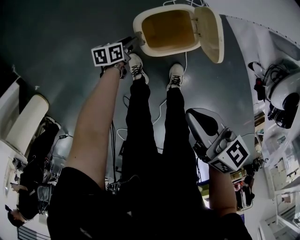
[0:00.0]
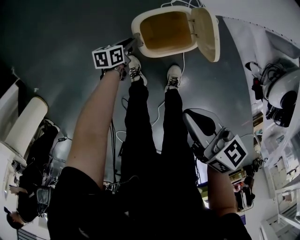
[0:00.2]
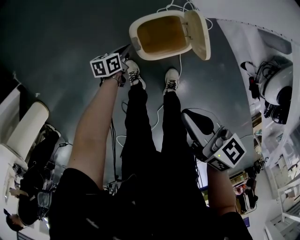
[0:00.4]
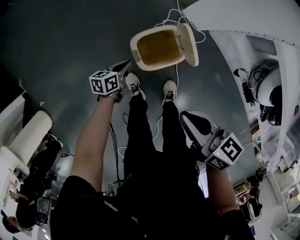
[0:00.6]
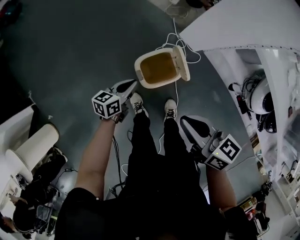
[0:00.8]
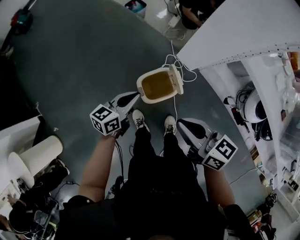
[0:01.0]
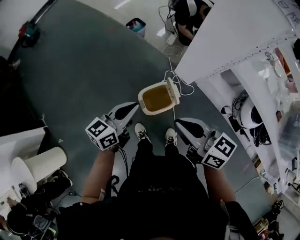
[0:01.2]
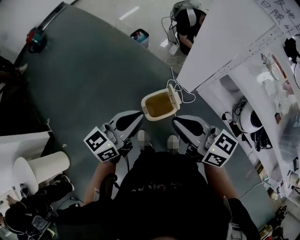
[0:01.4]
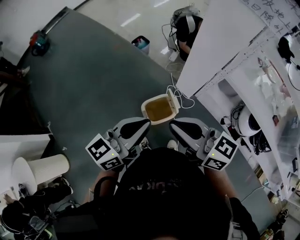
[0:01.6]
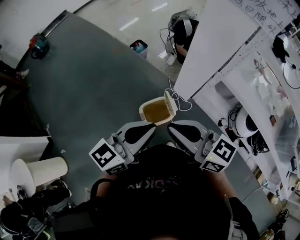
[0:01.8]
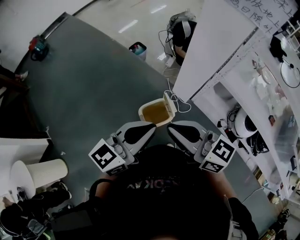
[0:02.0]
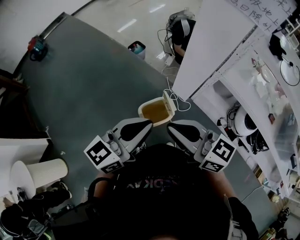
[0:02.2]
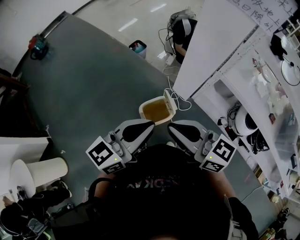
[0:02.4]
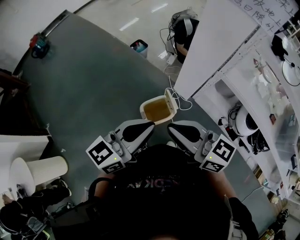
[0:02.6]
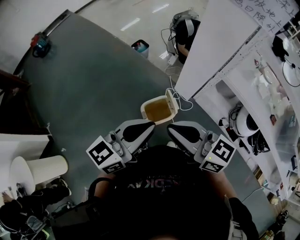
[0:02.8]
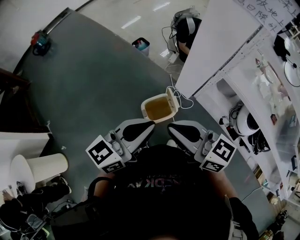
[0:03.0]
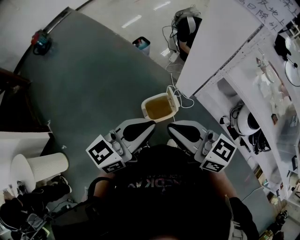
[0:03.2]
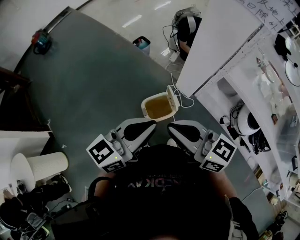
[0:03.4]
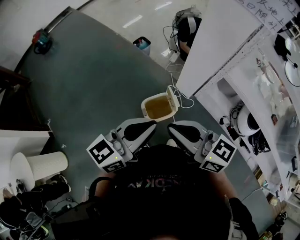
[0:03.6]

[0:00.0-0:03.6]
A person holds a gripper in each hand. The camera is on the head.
0.0 to 1.8 s: The left gripper travels upward by roughly 70 cm, angles its fingers upward, by some 50 degrees, and closes up. The right gripper shifts about 40 cm upward, and turns by roughly 40 degrees.
1.8 to 3.6 s: The grippers move only a little.

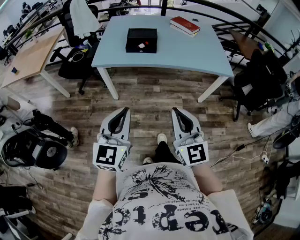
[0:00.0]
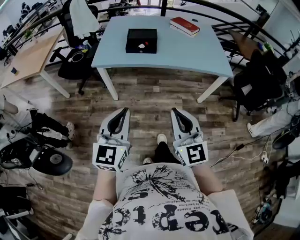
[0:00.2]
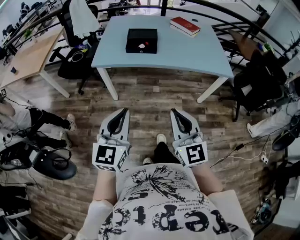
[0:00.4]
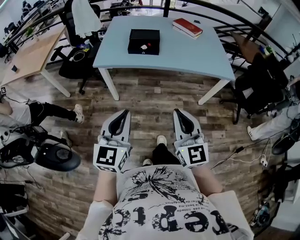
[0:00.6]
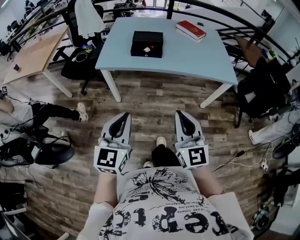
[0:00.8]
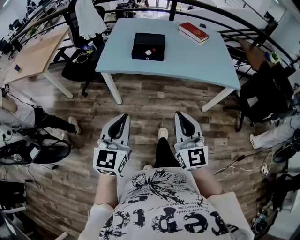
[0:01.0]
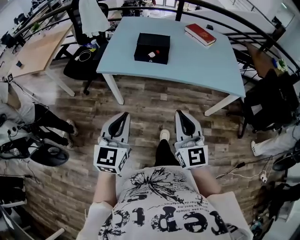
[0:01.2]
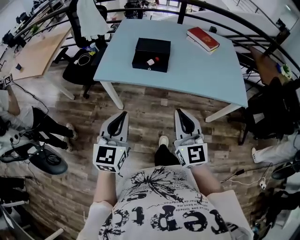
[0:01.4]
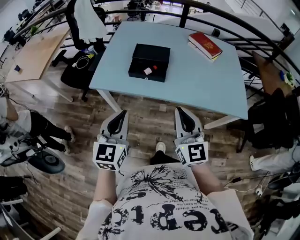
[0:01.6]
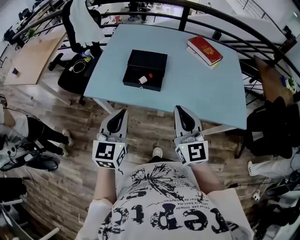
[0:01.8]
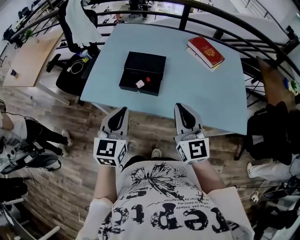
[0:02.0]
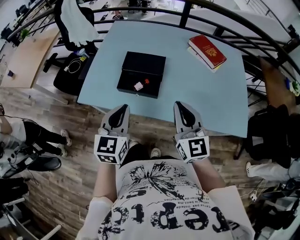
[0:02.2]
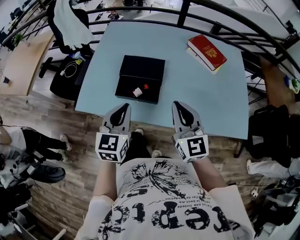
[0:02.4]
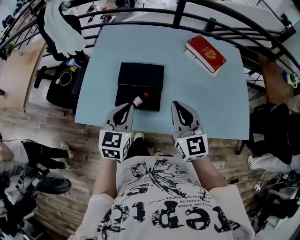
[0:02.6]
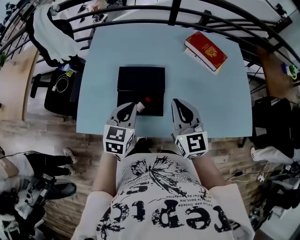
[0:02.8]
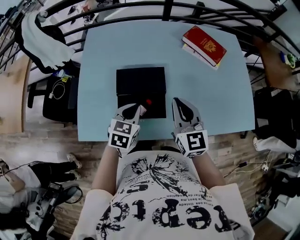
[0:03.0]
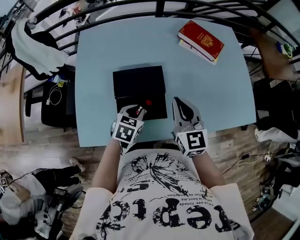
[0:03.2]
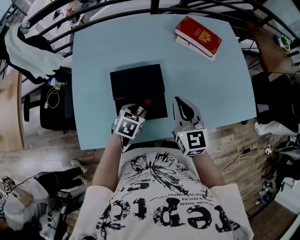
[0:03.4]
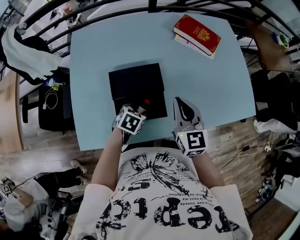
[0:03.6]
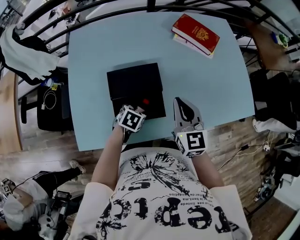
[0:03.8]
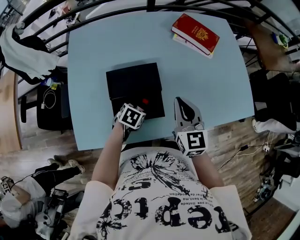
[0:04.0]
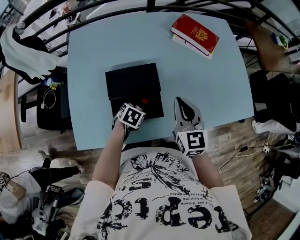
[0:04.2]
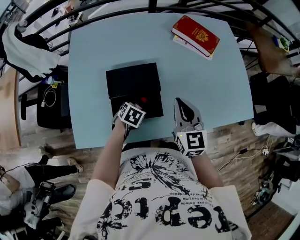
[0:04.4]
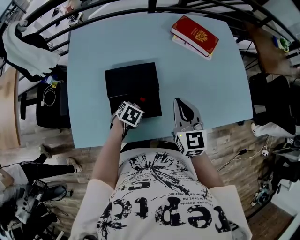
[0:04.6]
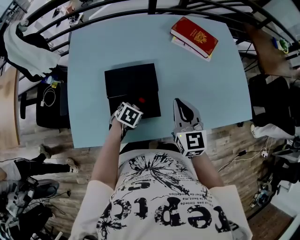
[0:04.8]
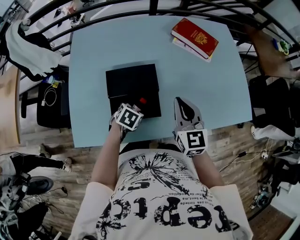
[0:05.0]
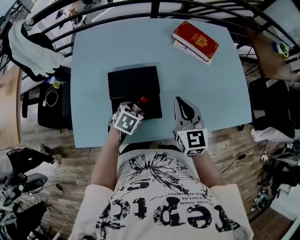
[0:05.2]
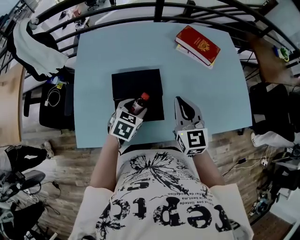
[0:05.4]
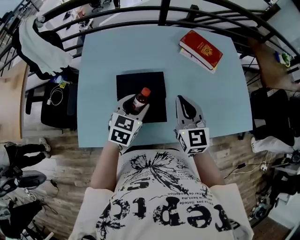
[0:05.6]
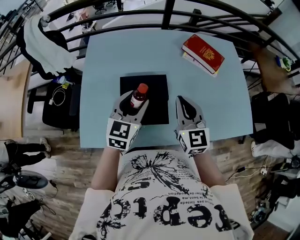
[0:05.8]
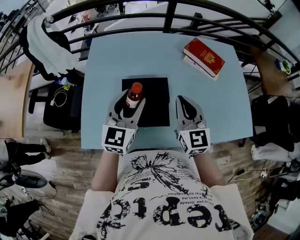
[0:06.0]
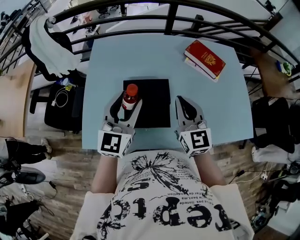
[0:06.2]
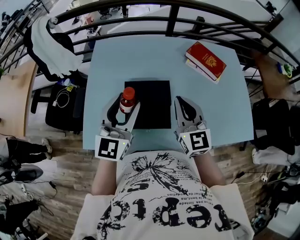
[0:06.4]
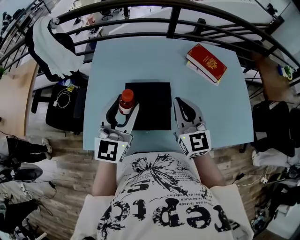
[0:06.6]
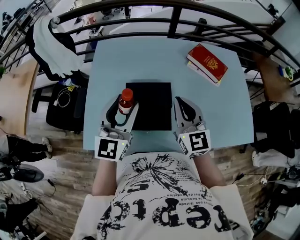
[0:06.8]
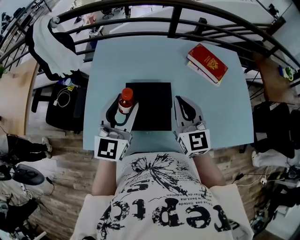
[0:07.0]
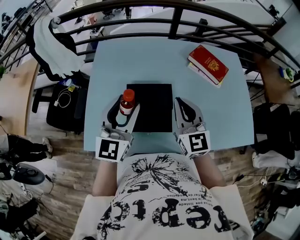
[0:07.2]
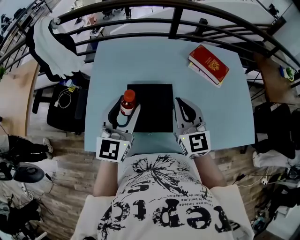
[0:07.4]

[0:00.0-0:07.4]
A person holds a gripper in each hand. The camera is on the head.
0.0 to 1.4 s: The grippers both shift forward by approximately 20 cm.
1.4 to 3.0 s: The pair of grippers is taken forward, some 50 cm. The left gripper turns by about 40 degrees.
3.0 to 4.4 s: The left gripper is displaced downward by roughly 15 cm, rotates some 30 degrees, and opens.
4.4 to 6.0 s: The left gripper goes some 30 cm upward, and tips its fingers upward by roughly 60 degrees. The right gripper shifts some 5 cm upward.
6.0 to 7.4 s: The left gripper changes place by roughly 5 cm.

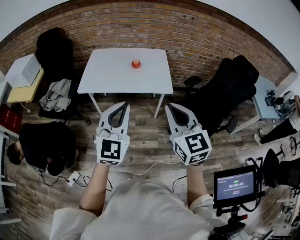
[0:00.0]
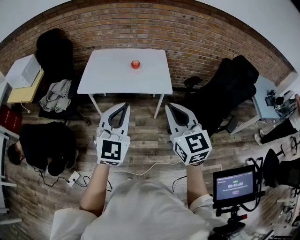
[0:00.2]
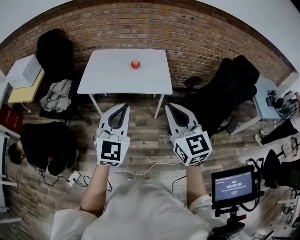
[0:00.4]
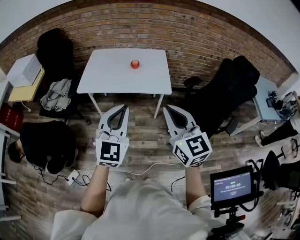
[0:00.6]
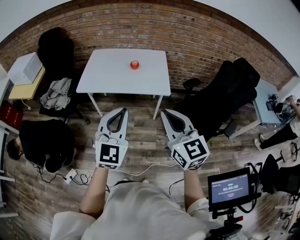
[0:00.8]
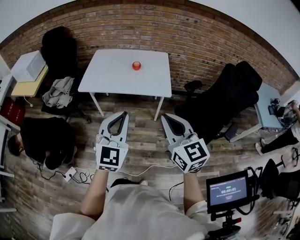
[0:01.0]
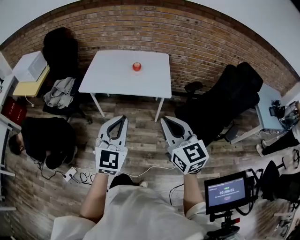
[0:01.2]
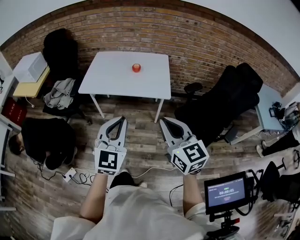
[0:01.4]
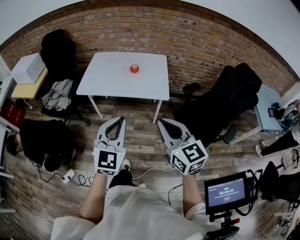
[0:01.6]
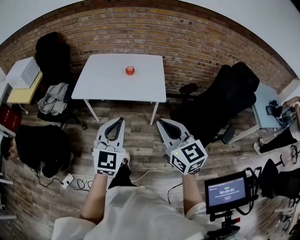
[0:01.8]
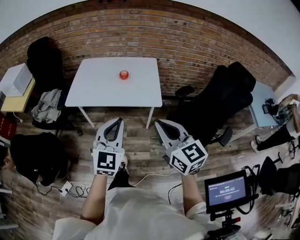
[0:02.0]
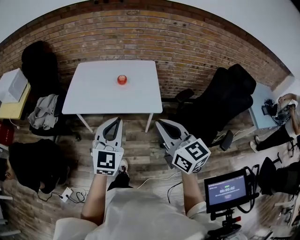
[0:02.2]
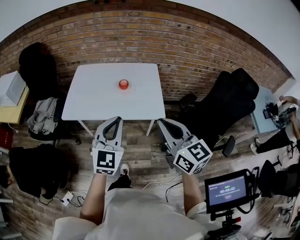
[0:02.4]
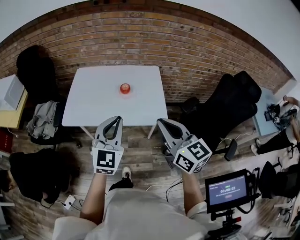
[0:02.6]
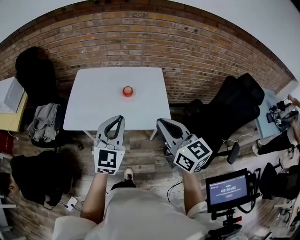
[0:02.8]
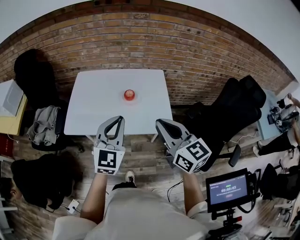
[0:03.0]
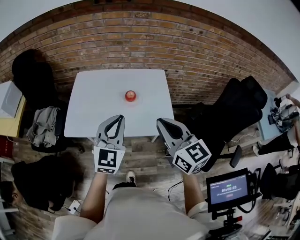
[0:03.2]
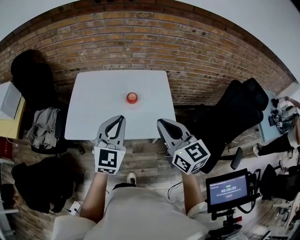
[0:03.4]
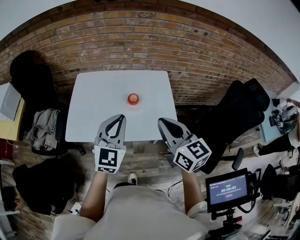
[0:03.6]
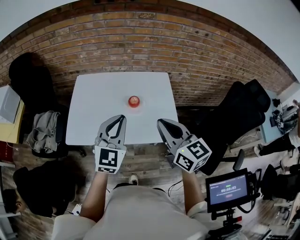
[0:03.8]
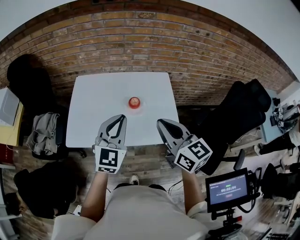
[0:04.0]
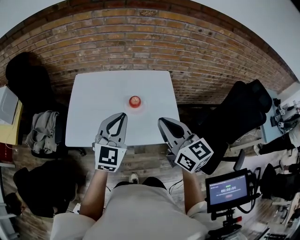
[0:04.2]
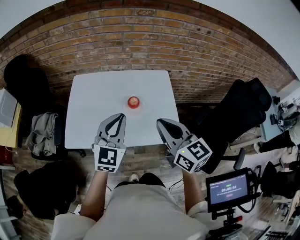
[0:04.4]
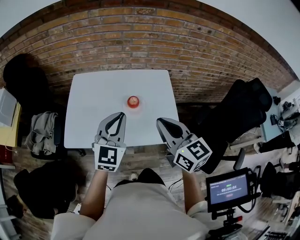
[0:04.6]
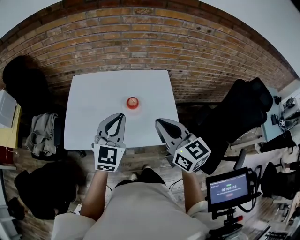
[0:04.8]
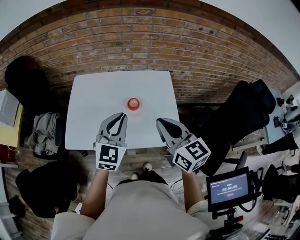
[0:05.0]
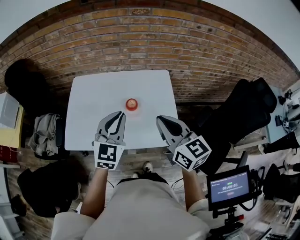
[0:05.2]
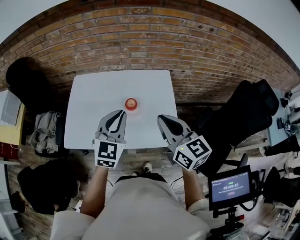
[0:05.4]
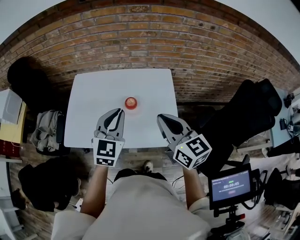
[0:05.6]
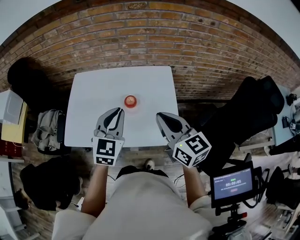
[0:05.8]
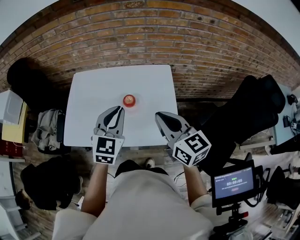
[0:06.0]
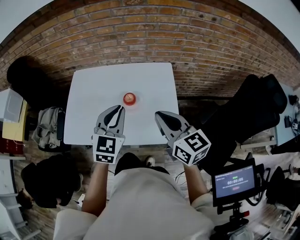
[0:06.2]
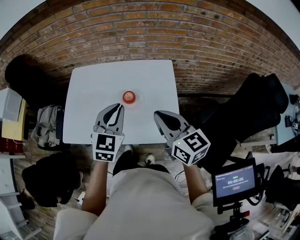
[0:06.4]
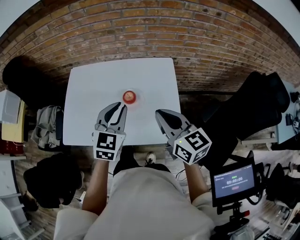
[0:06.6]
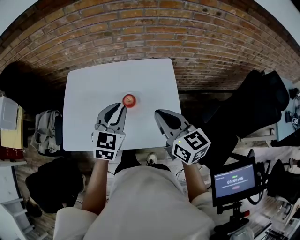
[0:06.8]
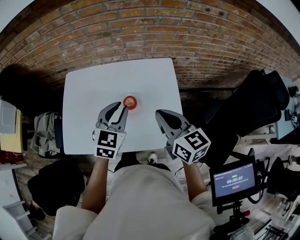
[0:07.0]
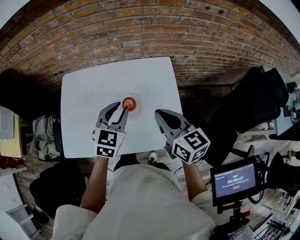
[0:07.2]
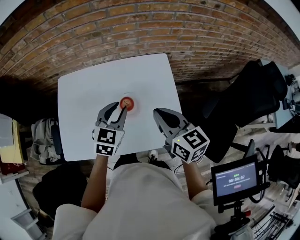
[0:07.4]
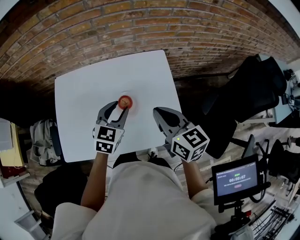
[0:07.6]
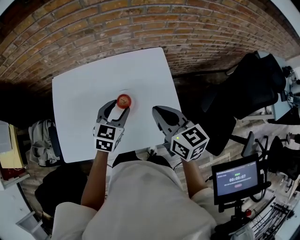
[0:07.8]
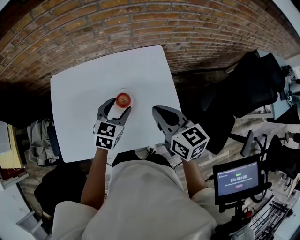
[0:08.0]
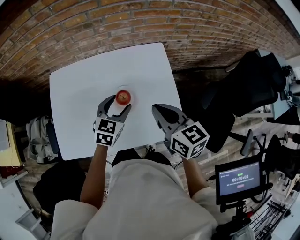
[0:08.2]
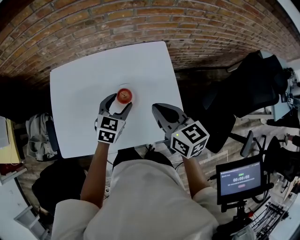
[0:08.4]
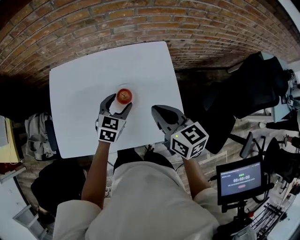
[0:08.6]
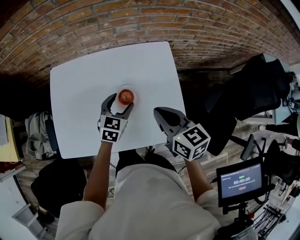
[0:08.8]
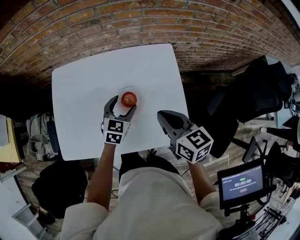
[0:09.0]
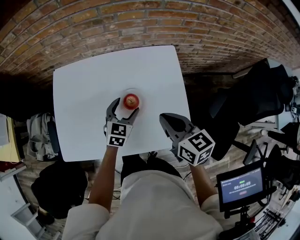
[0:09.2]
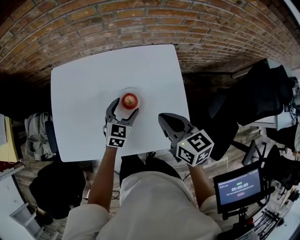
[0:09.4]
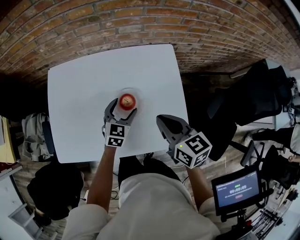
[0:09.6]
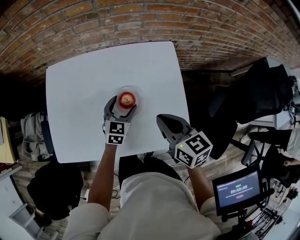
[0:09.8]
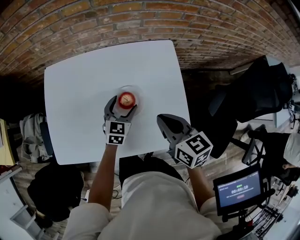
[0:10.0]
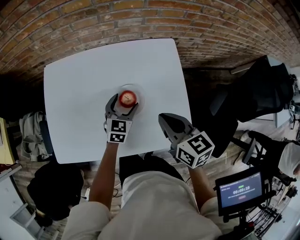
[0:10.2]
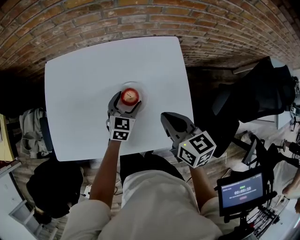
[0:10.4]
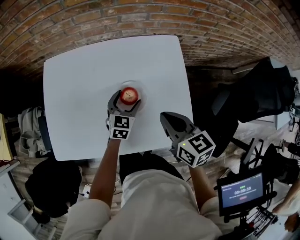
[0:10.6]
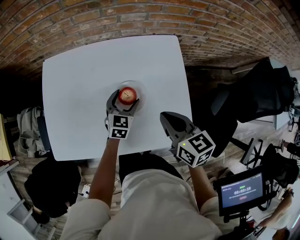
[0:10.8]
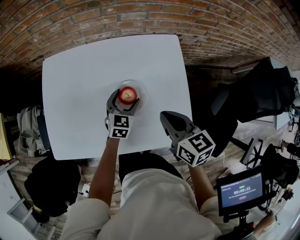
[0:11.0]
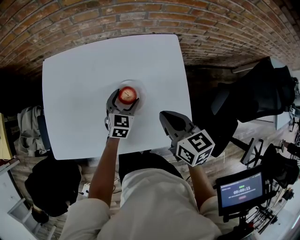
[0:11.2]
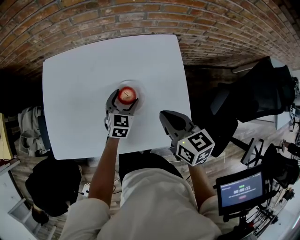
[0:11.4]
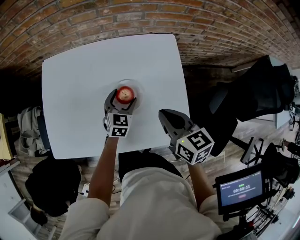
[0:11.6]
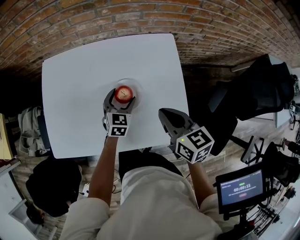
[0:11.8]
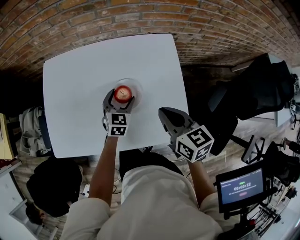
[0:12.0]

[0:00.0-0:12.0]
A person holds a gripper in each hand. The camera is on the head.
0.0 to 1.6 s: The right gripper moves roughly 5 cm; the left gripper changes place by approximately 5 cm.
1.6 to 3.0 s: The grippers both shift forward by about 30 cm.
3.0 to 4.4 s: Both grippers travel together forward, roughly 10 cm.
4.4 to 6.0 s: The grippers both shift to the right and forward by about 10 cm.
6.0 to 7.6 s: The right gripper goes roughly 10 cm forward and downward. Meanwhile the left gripper is displaced downward and forward by about 15 cm, changes its angle by some 20 degrees, and opens its fingers.
7.6 to 9.0 s: The right gripper travels downward by about 5 cm, while the left gripper is displaced downward by approximately 10 cm, and opens its fingers.
9.0 to 10.4 s: The left gripper shifts roughly 5 cm downward.
10.4 to 12.0 s: There are only small adjustments of the grippers.

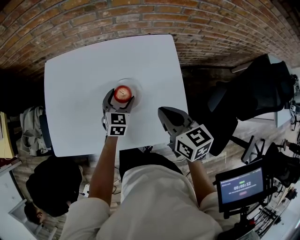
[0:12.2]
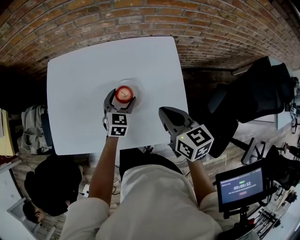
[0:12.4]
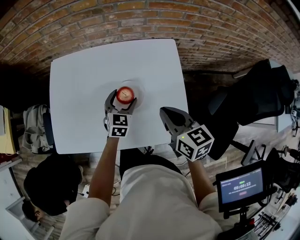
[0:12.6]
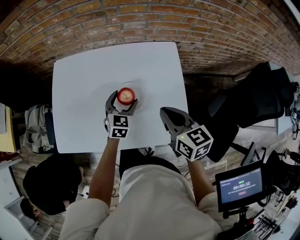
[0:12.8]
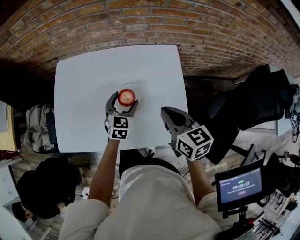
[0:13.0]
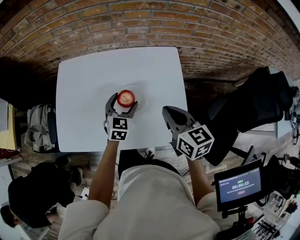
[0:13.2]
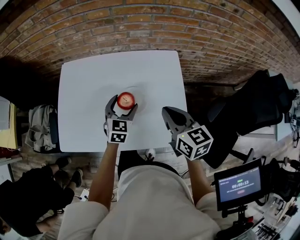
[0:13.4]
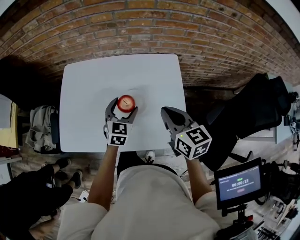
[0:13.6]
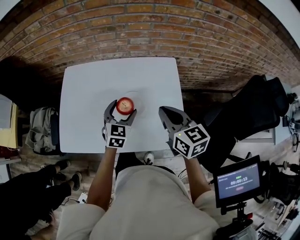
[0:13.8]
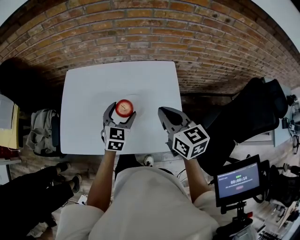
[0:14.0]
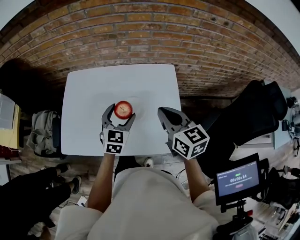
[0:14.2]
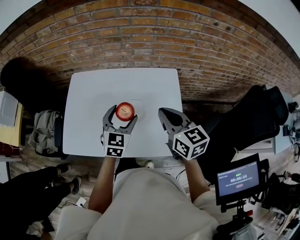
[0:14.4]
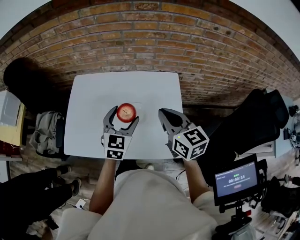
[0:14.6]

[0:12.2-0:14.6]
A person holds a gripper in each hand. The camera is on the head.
12.2 to 13.4 s: The left gripper moves upward, some 10 cm, while the right gripper travels upward by approximately 5 cm.
13.4 to 14.6 s: The left gripper shifts approximately 10 cm upward. The right gripper moves upward, some 5 cm.
